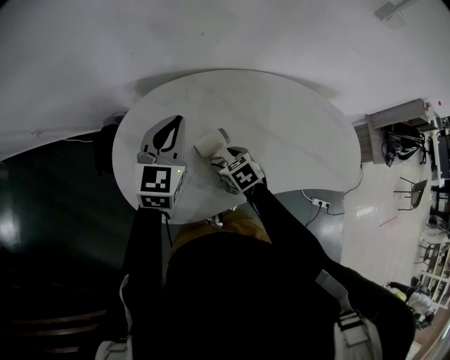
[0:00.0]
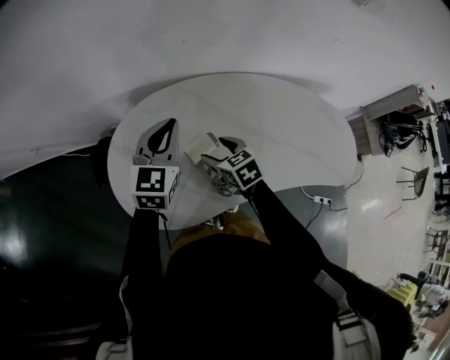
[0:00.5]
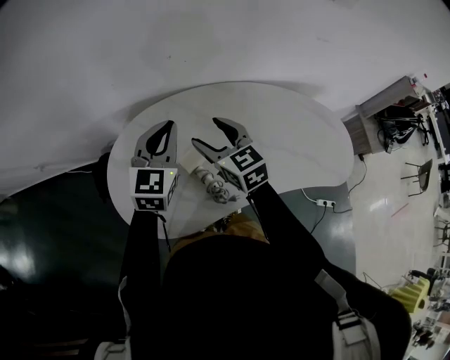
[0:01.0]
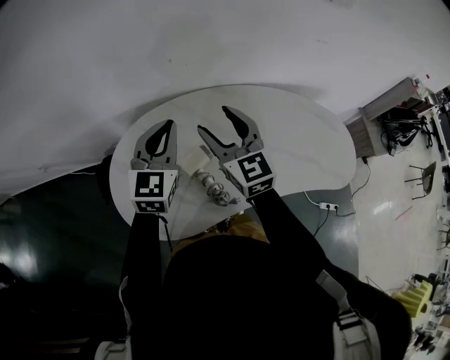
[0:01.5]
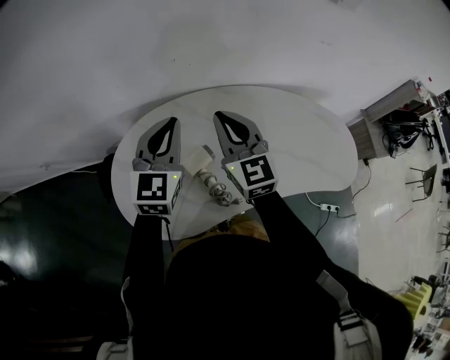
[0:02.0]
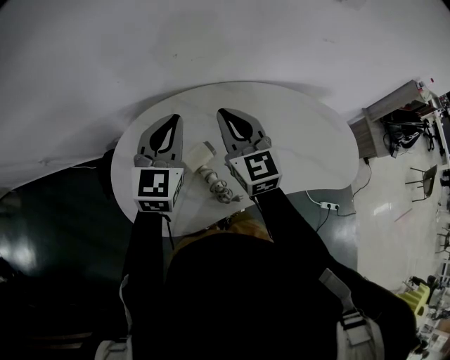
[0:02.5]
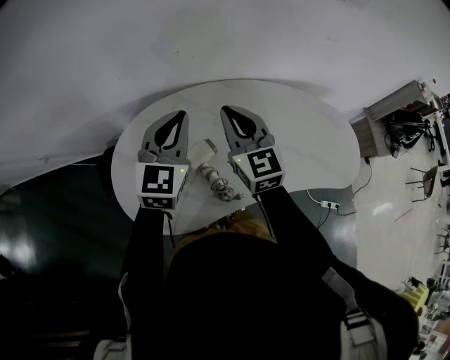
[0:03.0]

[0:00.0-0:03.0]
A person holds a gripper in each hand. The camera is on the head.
0:00.0 to 0:01.5: The left gripper moves to the right and upward, approximately 10 cm, while the right gripper goes some 30 cm upward, and tips its fingers upward by roughly 50 degrees.
0:01.5 to 0:03.0: The right gripper closes its fingers.

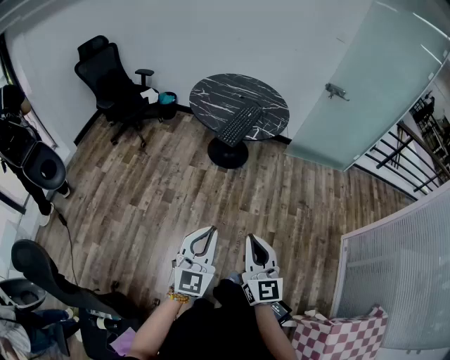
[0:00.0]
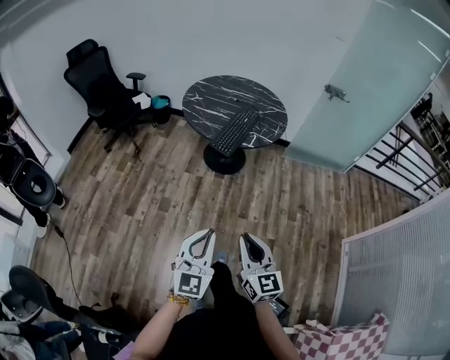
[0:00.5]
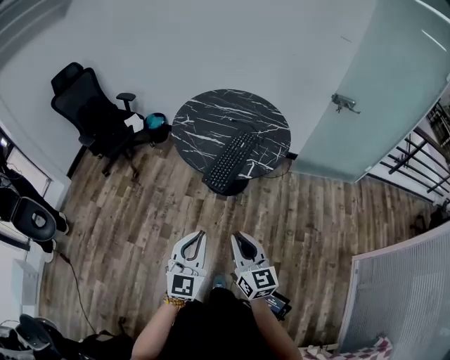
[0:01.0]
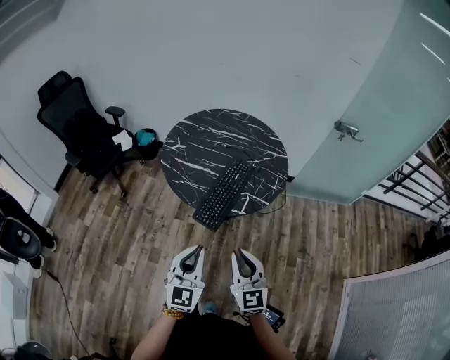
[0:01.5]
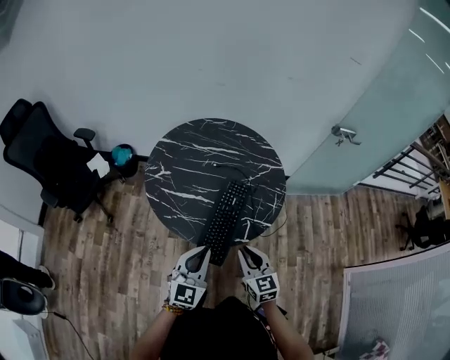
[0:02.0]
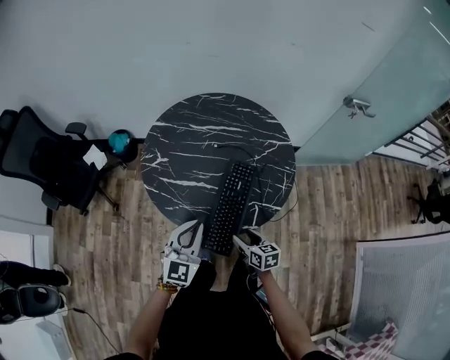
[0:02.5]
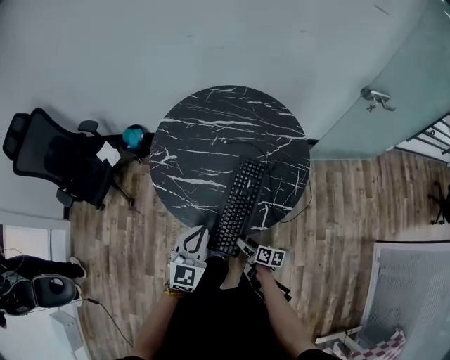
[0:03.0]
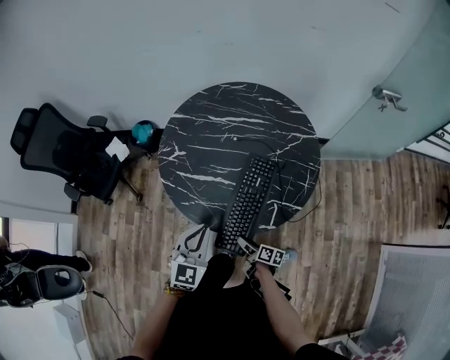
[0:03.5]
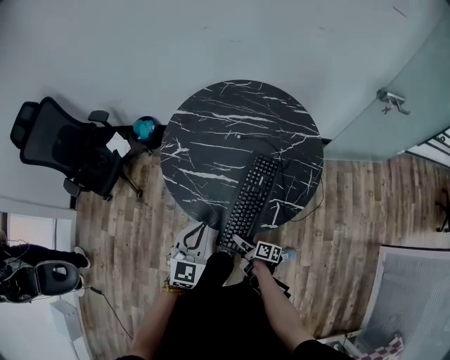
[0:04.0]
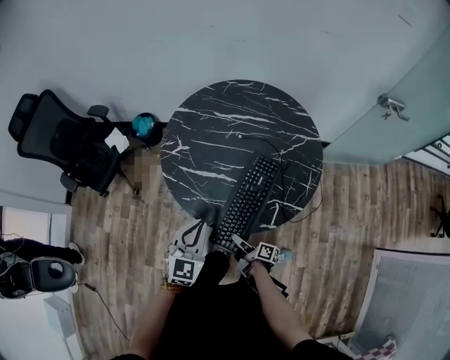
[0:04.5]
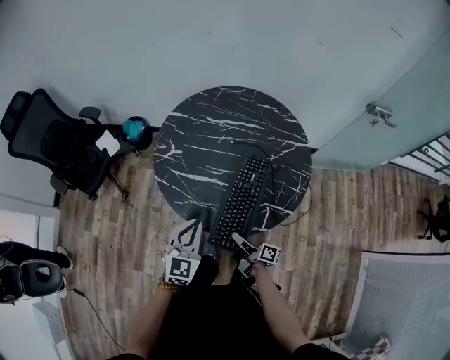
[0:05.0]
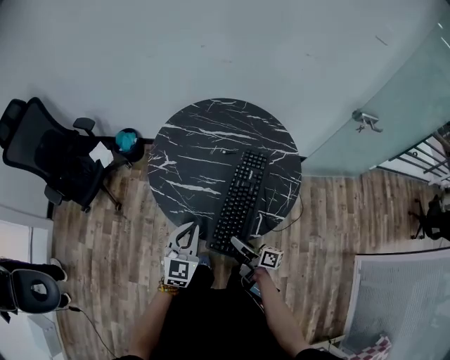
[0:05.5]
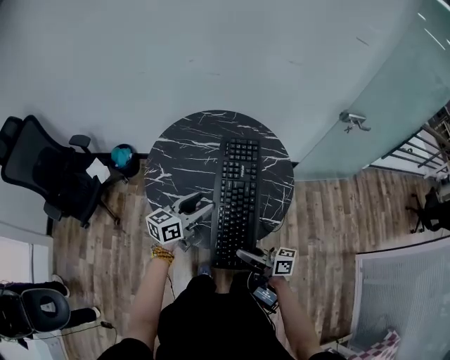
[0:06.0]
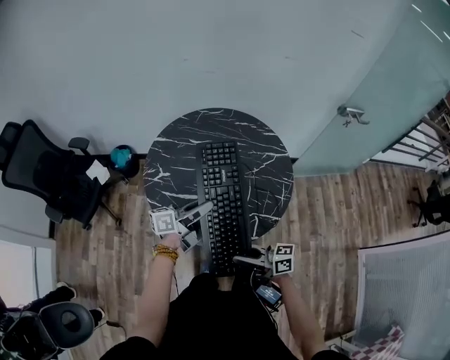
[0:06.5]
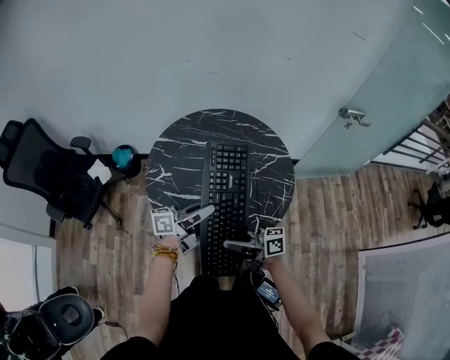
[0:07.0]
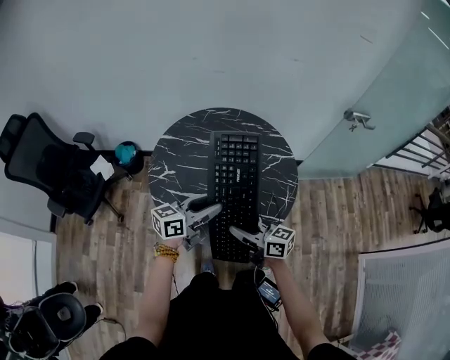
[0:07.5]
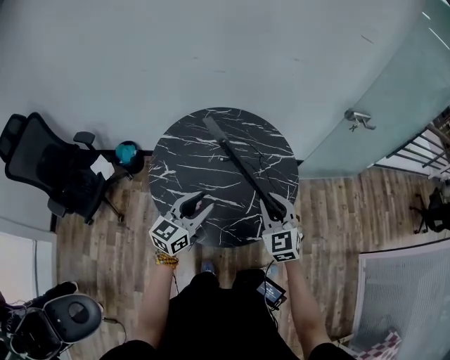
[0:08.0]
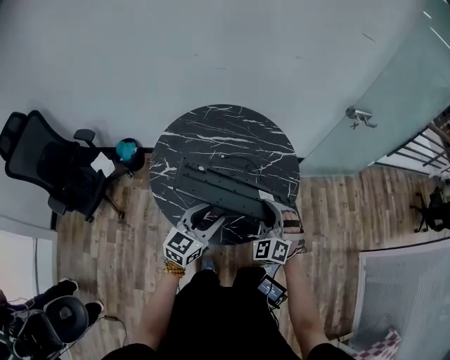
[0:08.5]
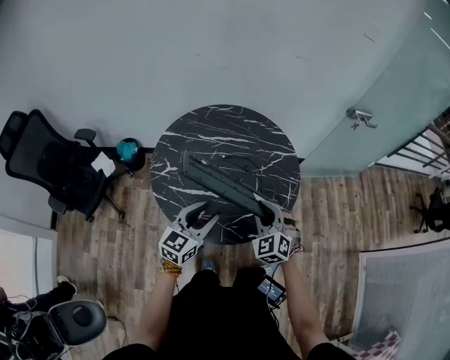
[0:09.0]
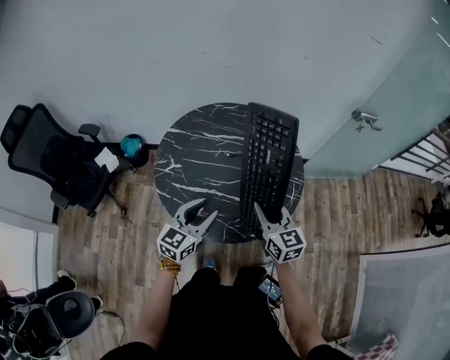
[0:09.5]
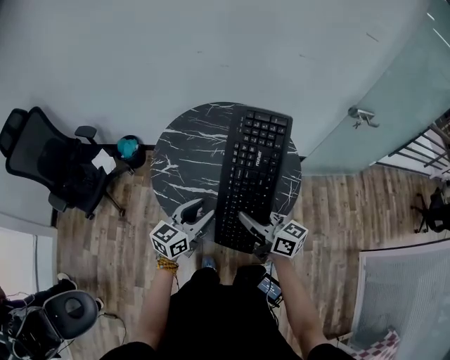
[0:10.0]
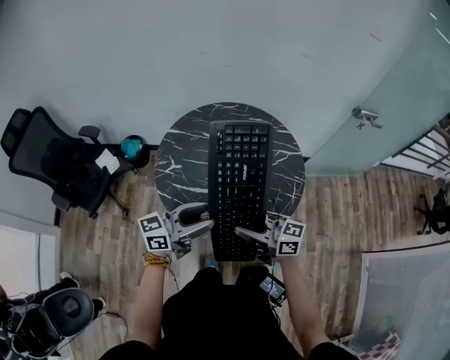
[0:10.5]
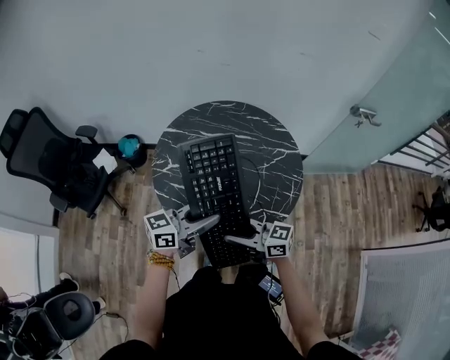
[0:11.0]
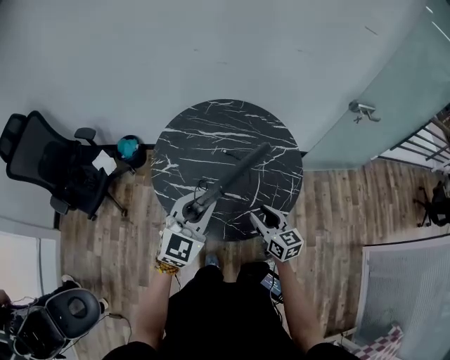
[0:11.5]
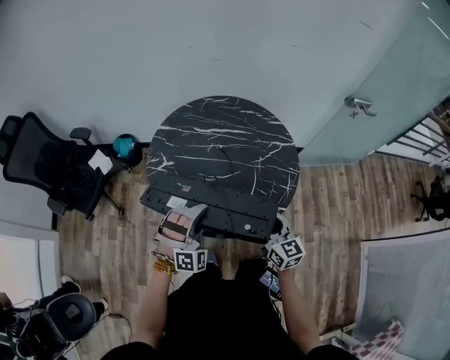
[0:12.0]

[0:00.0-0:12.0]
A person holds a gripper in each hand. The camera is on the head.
0:00.0 to 0:02.0: The pair of grippers is taken forward, roughly 60 cm. The right gripper rotates about 20 degrees.
0:02.0 to 0:04.0: The left gripper shifts about 10 cm forward and downward; the right gripper moves downward, roughly 25 cm, rotates around the line of its fingers by approximately 80 degrees, clockwise from behind, and opens.
0:04.0 to 0:06.0: The right gripper heads upward, covering approximately 25 cm, turns by about 40 degrees, and closes its fingers. The left gripper moves forward and to the right, some 10 cm, swivels about 50 degrees, and opens its fingers.
0:06.0 to 0:08.0: The left gripper rotates approximately 20 degrees. Meanwhile the right gripper shifts by roughly 20 cm, twists approximately 70 degrees counterclockwise, seen from behind, and opens and closes again.
0:08.0 to 0:10.0: The right gripper shifts roughly 10 cm to the left and backward, and swivels some 70 degrees.
0:10.0 to 0:12.0: The right gripper moves about 10 cm, and swivels roughly 30 degrees. The left gripper goes upward and returns, some 10 cm each way, rotates around the line of its fingers by about 90 degrees, clockwise from behind, and closes its fingers.

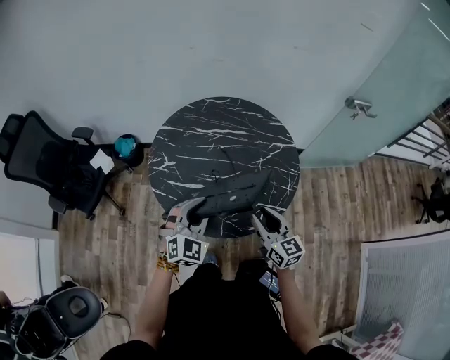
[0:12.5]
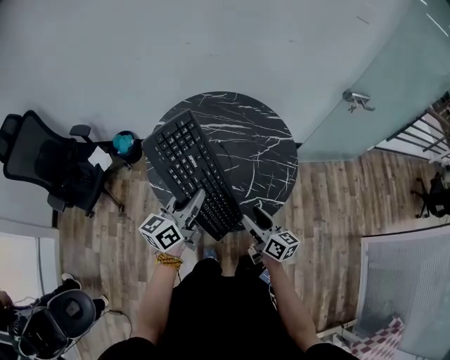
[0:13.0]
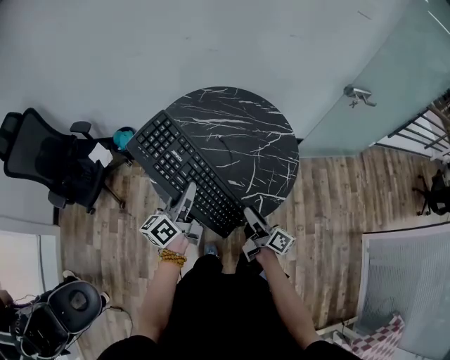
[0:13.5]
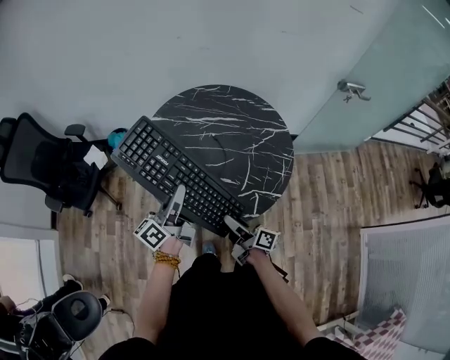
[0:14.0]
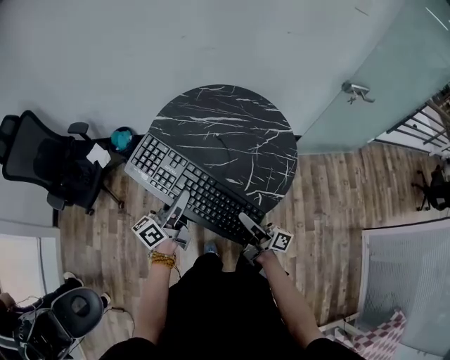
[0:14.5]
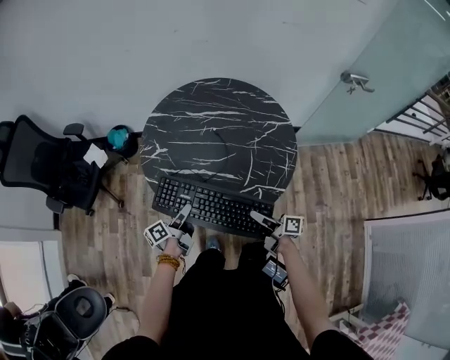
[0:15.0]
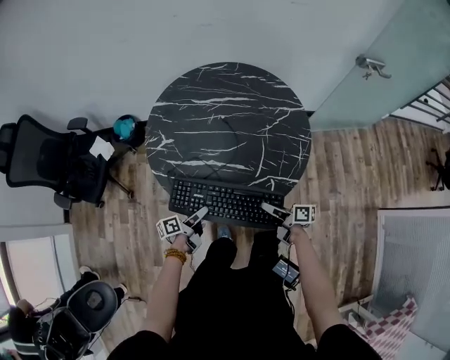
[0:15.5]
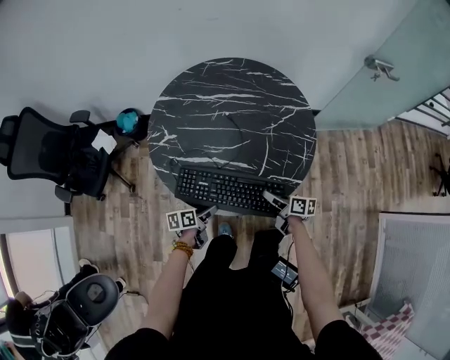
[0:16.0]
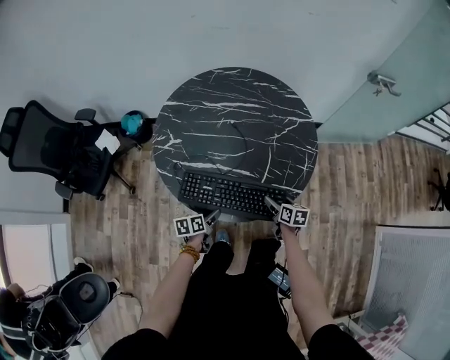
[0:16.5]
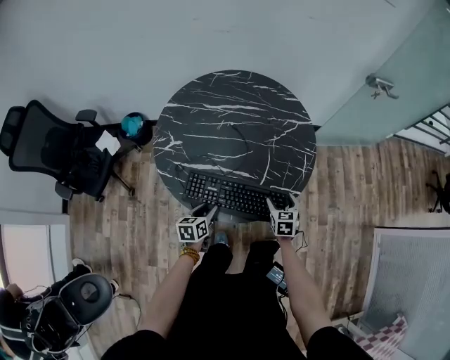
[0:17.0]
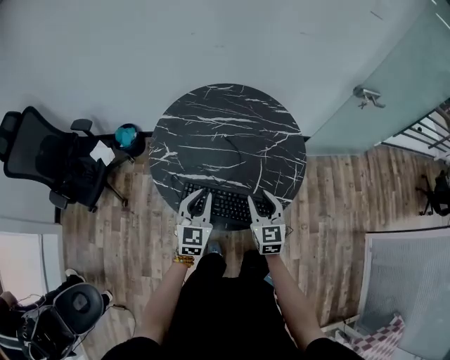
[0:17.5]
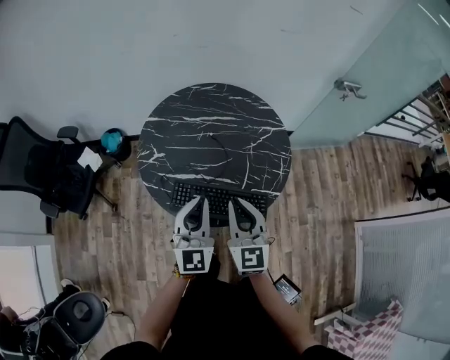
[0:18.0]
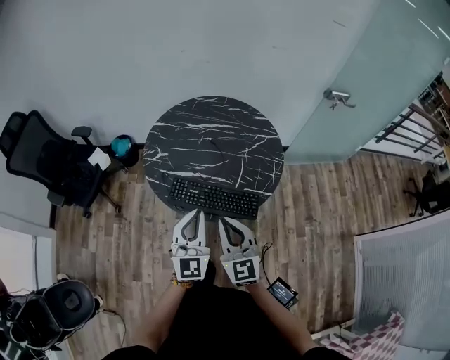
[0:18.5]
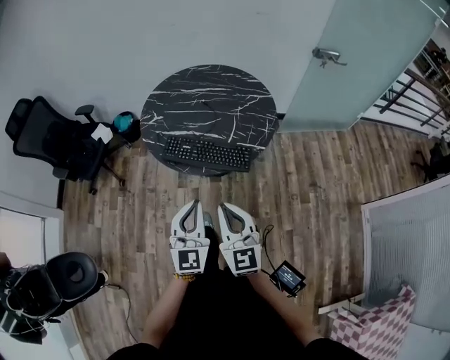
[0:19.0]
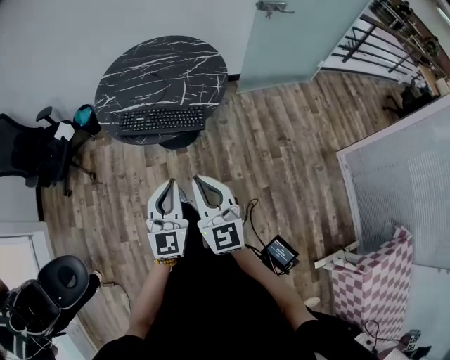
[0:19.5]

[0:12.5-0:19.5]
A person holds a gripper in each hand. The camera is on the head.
0:12.5 to 0:14.5: The right gripper rotates around the line of its fingers by approximately 60 degrees, clockwise from behind, and opens and closes again; the left gripper shifts approximately 5 cm to the left, and rotates around the line of its fingers by some 80 degrees, counterclockwise from behind.
0:14.5 to 0:16.0: The two grippers go approximately 25 cm downward. The right gripper points its fingers some 40 degrees further downward; the left gripper tips its fingers downward by some 50 degrees, and opens up.
0:16.0 to 0:17.5: The two grippers go roughly 20 cm upward. The right gripper rolls counterclockwise, seen from behind, by roughly 60 degrees; the left gripper rotates around the line of its fingers by approximately 60 degrees, clockwise from behind, and closes its fingers.
0:17.5 to 0:19.5: Both grippers move backward, some 40 cm. The right gripper closes its fingers.

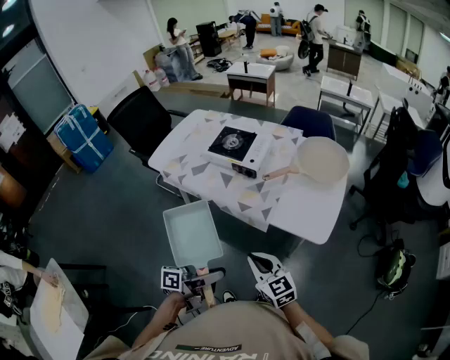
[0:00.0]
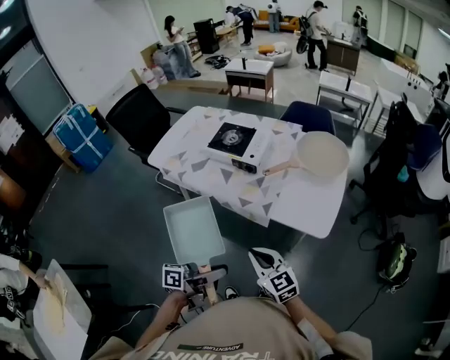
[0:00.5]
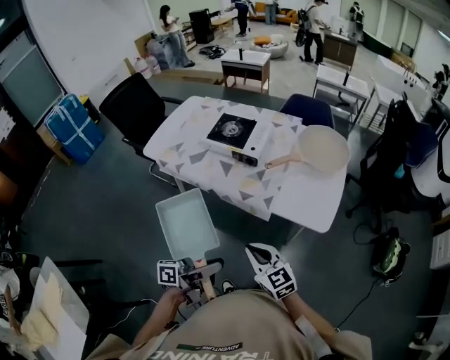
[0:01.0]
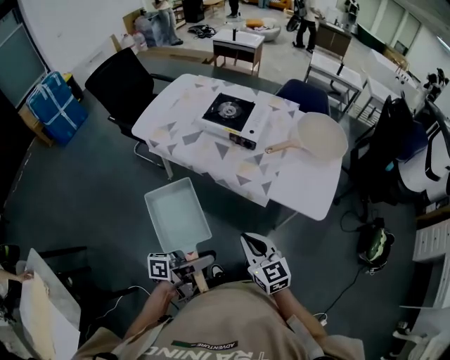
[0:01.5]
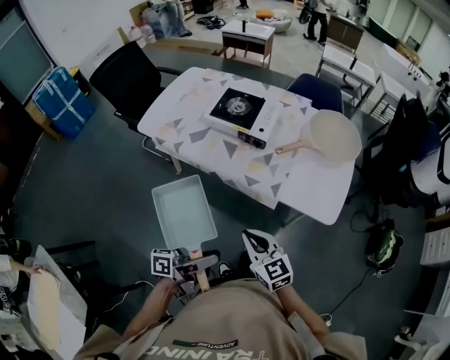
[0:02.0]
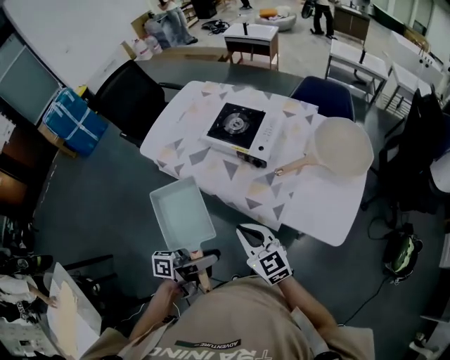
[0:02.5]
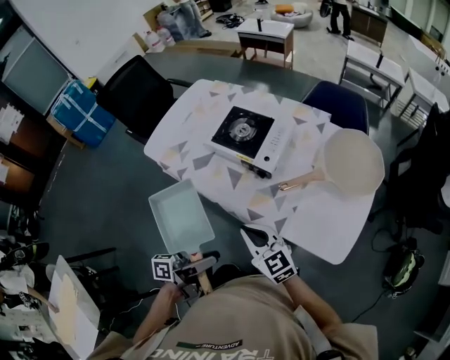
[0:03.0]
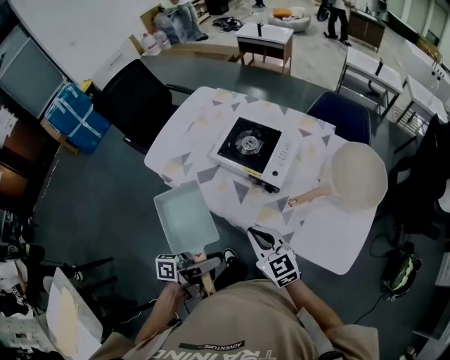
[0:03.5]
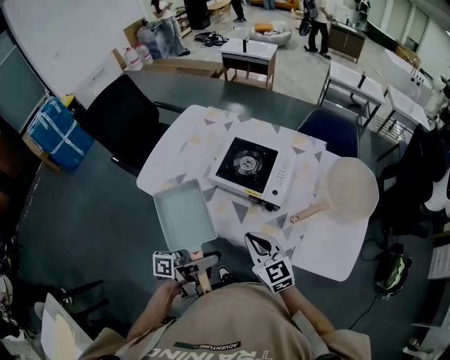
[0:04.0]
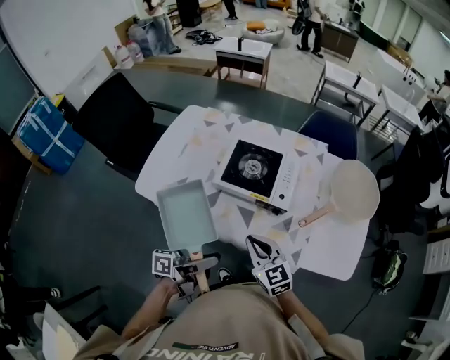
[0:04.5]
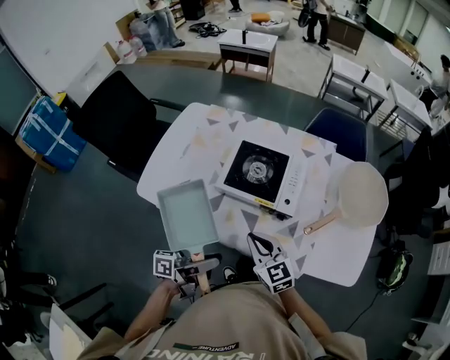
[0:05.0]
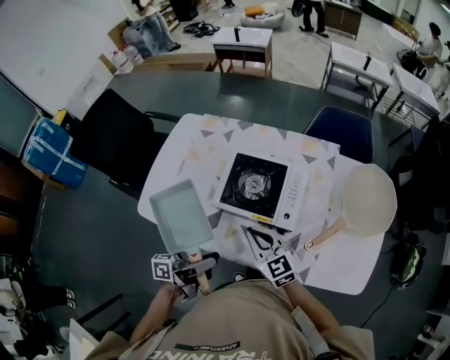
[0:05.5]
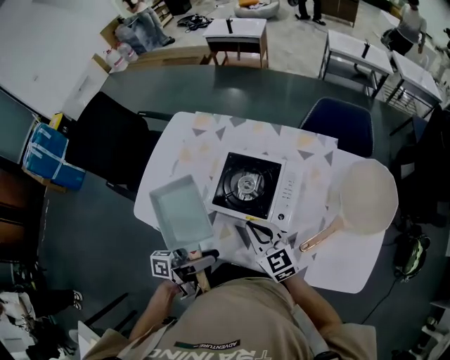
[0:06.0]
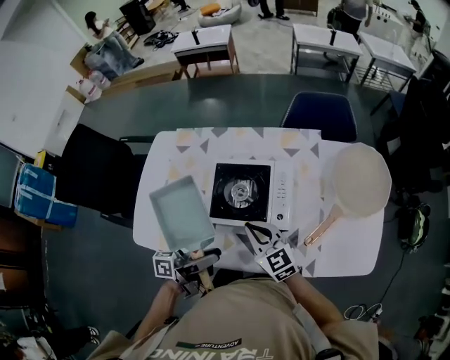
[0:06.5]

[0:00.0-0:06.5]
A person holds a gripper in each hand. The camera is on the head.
0:00.0 to 0:02.0: The right gripper shifts by about 10 cm.
0:02.0 to 0:04.5: The right gripper changes place by approximately 30 cm.
0:04.5 to 0:06.5: The right gripper moves approximately 15 cm.
